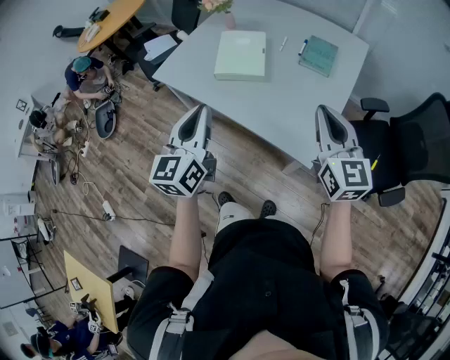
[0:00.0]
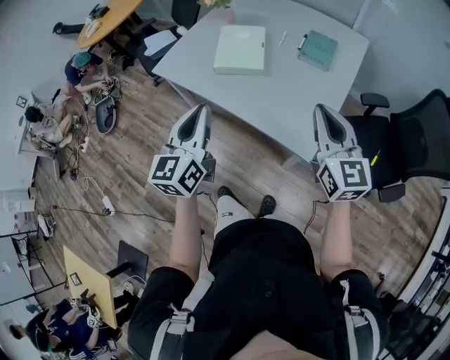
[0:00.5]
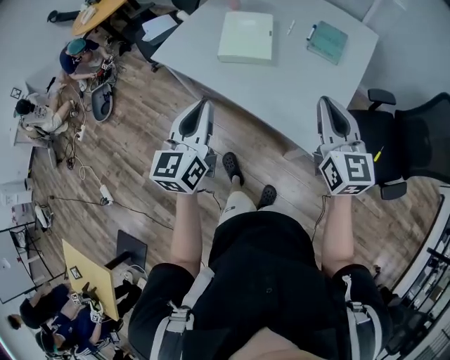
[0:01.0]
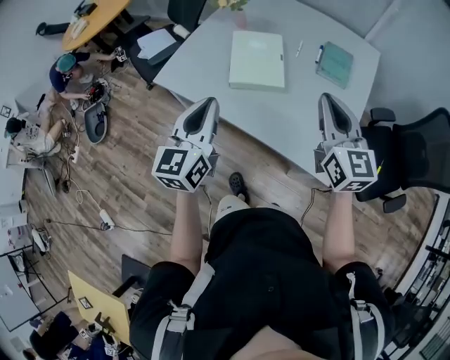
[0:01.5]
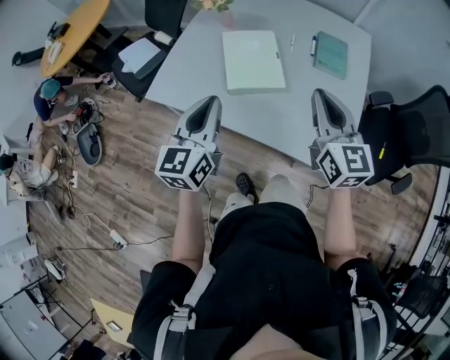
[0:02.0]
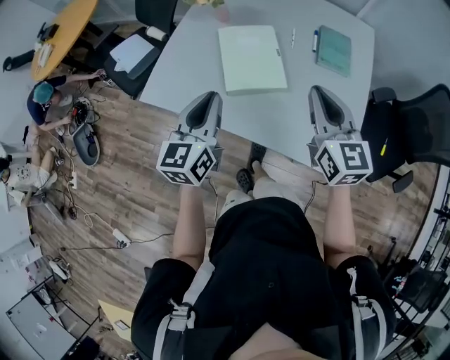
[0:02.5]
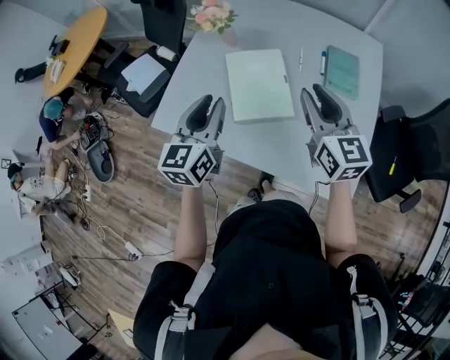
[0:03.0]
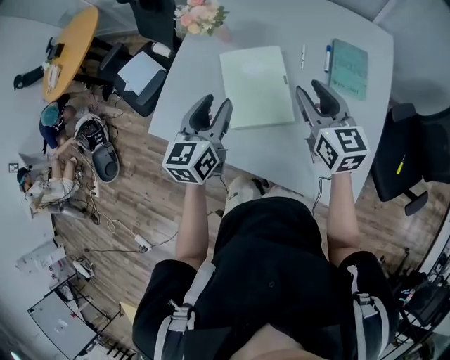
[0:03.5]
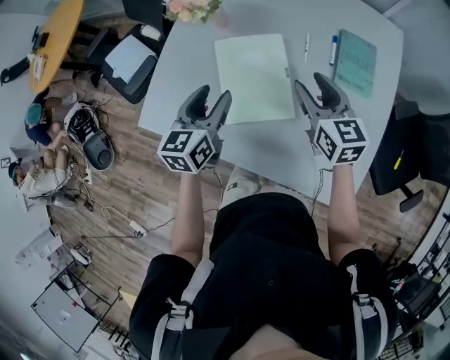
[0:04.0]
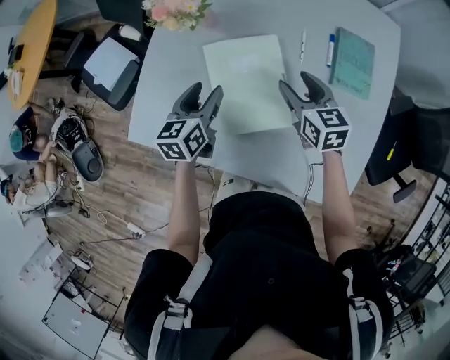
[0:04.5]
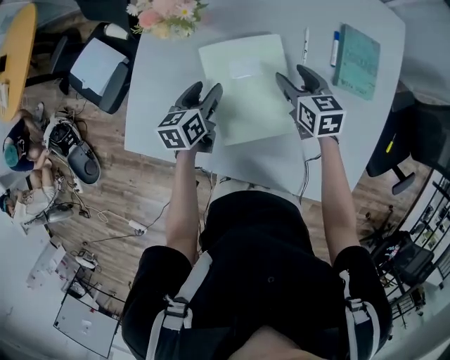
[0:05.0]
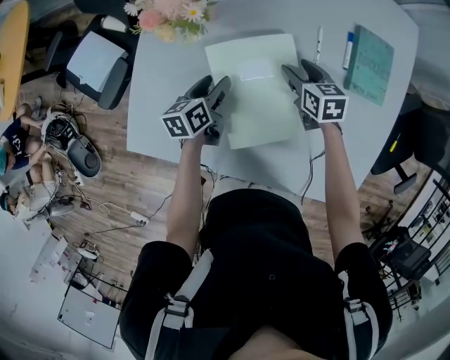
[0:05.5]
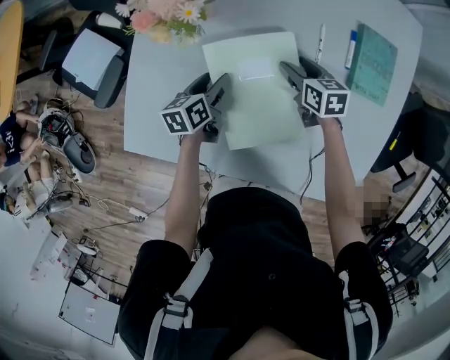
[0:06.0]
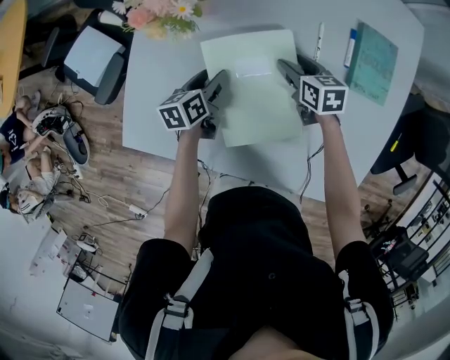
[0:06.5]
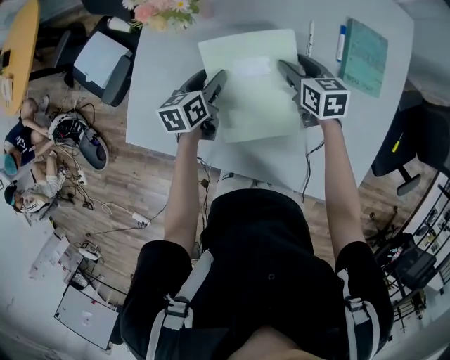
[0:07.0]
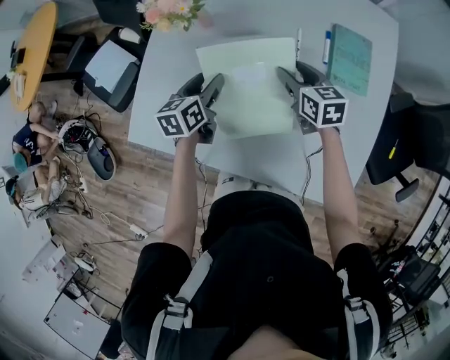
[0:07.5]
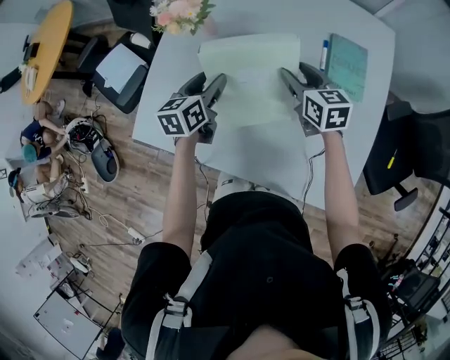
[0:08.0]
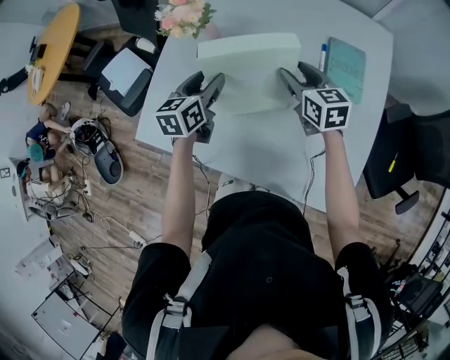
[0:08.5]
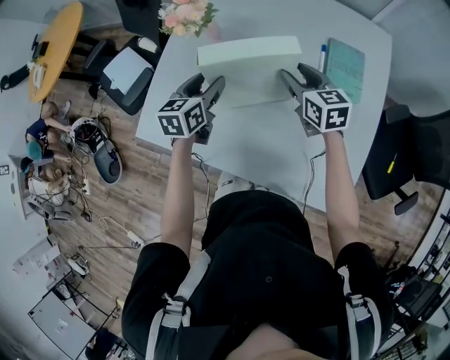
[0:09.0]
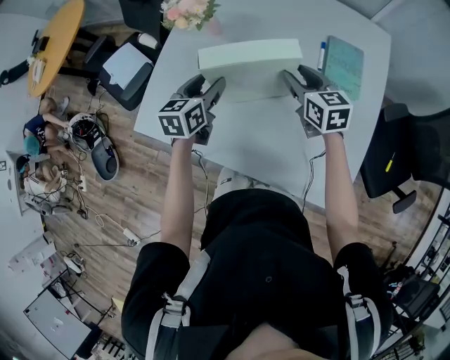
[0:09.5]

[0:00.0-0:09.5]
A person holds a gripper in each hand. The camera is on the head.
0:00.0 to 0:02.0: The right gripper moves to the left and forward, about 25 cm. Meanwhile the left gripper travels forward and to the left by some 25 cm.
0:02.0 to 0:04.0: The grippers both shift forward and downward by some 35 cm. The left gripper opens its fingers. Meanwhile the right gripper opens.
0:04.0 to 0:05.5: The two grippers go about 30 cm downward and forward. The right gripper swivels approximately 30 degrees; the left gripper changes its angle by some 30 degrees.
0:05.5 to 0:07.5: The two grippers go about 15 cm upward and backward.
0:07.5 to 0:09.5: Both grippers travel together upward and backward, approximately 10 cm.

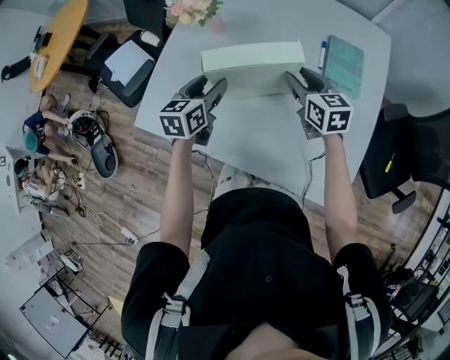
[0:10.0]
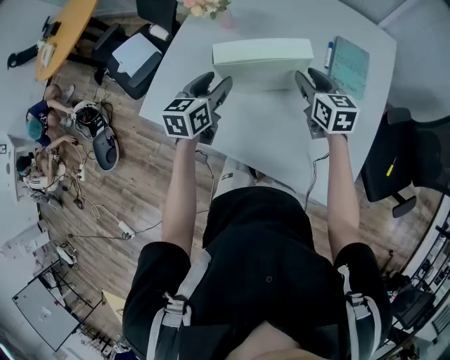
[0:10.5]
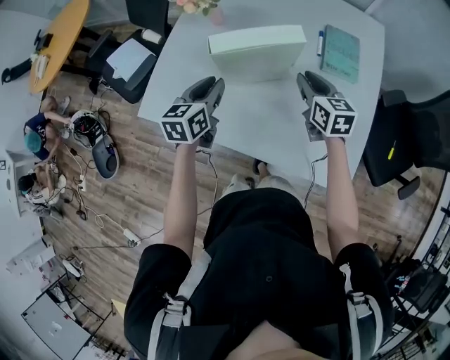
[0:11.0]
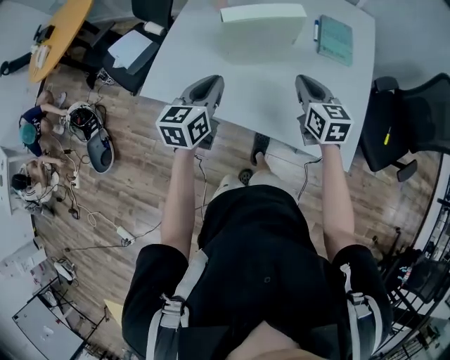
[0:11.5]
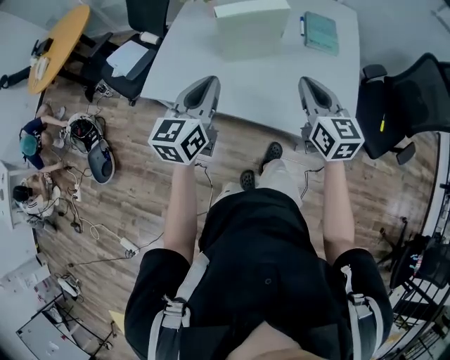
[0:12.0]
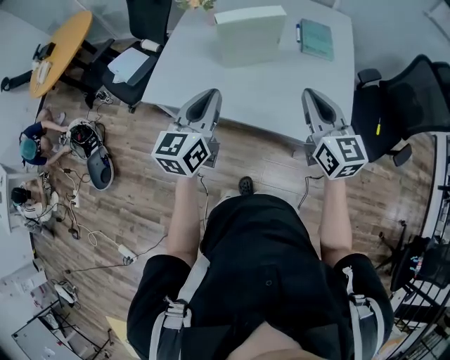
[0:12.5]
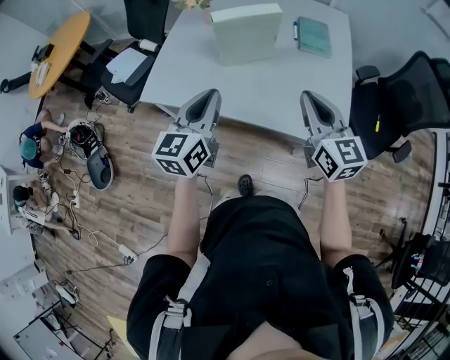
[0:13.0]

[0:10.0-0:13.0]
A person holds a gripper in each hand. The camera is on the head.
0:10.0 to 0:11.5: Both grippers move backward, some 20 cm. The left gripper closes up, while the right gripper closes its fingers.
0:11.5 to 0:13.0: Both grippers move backward and upward, about 20 cm.

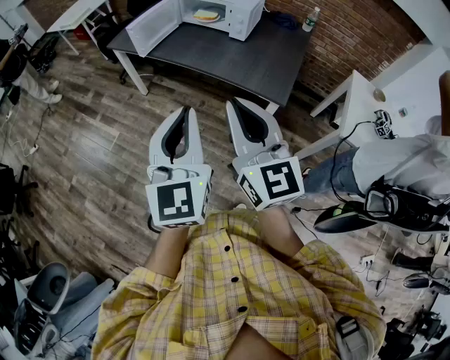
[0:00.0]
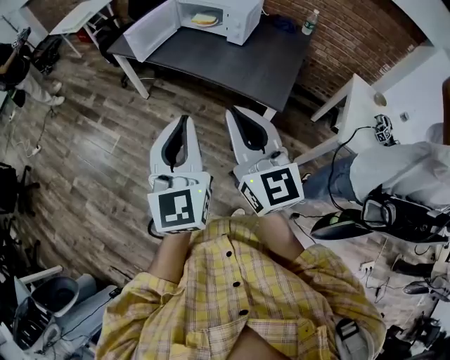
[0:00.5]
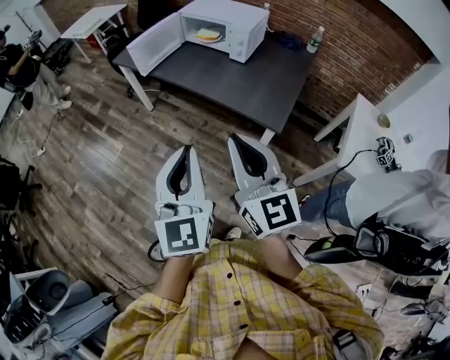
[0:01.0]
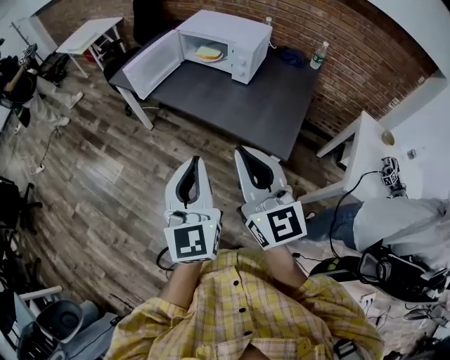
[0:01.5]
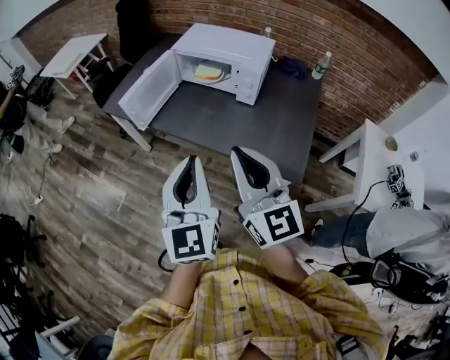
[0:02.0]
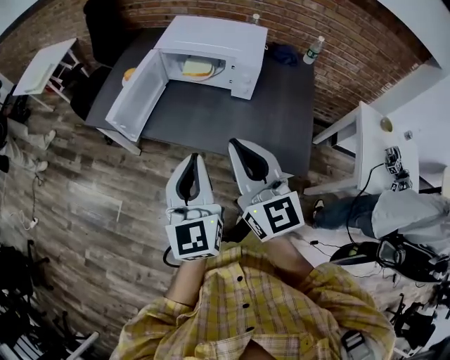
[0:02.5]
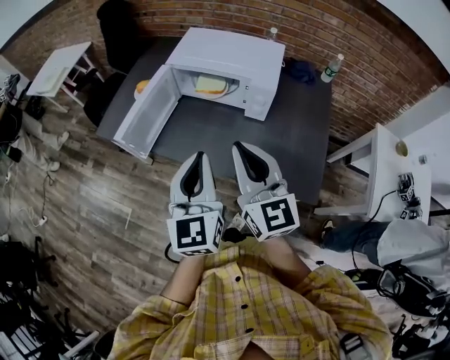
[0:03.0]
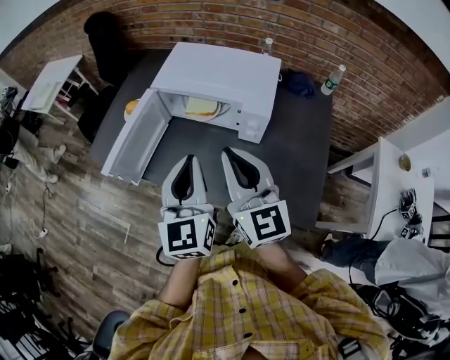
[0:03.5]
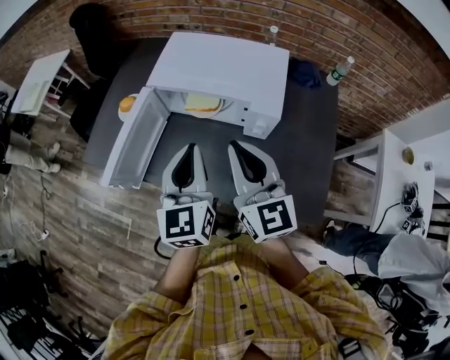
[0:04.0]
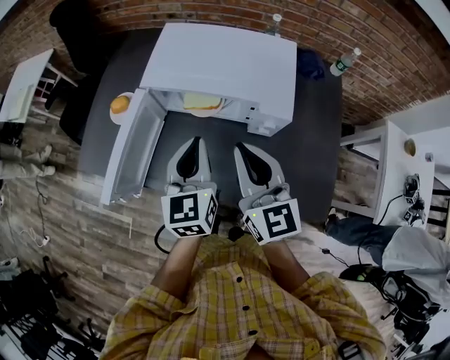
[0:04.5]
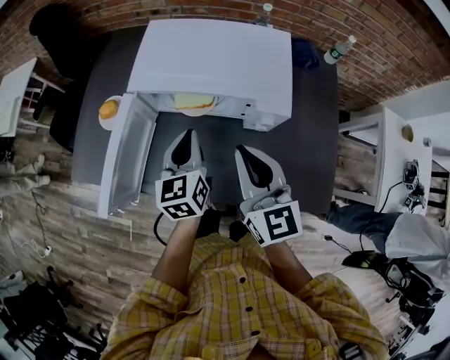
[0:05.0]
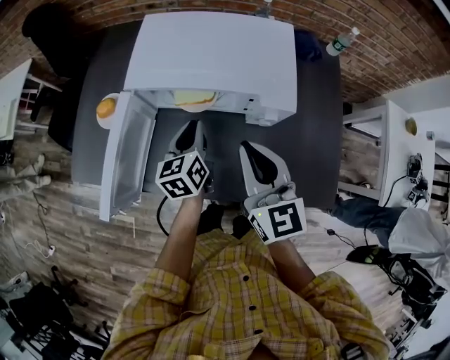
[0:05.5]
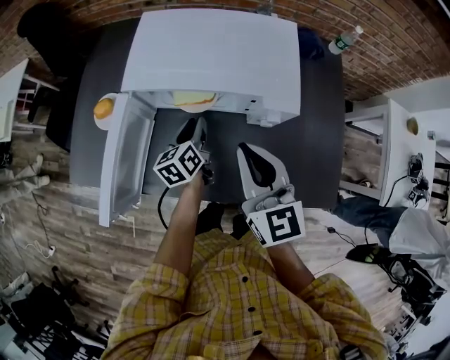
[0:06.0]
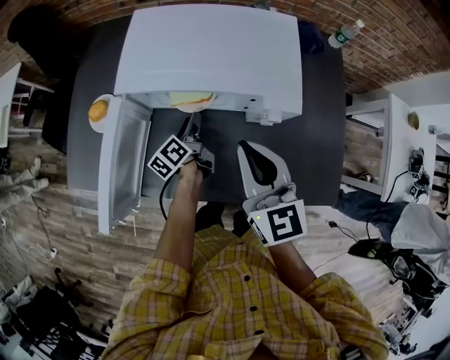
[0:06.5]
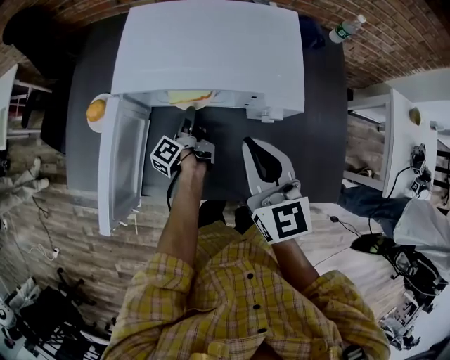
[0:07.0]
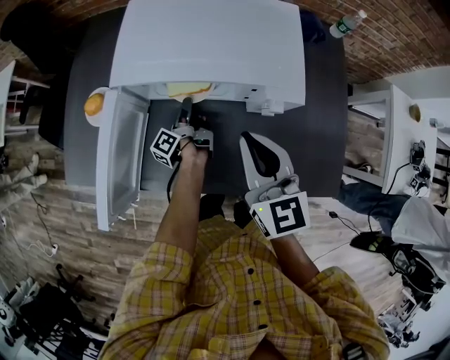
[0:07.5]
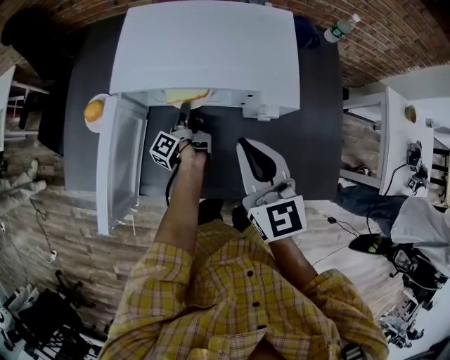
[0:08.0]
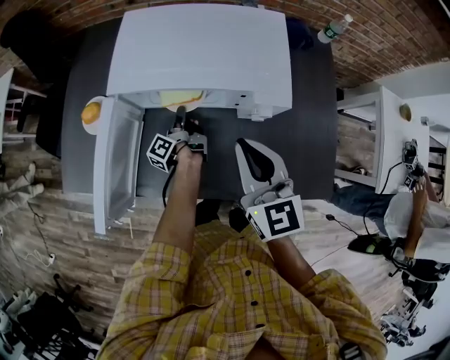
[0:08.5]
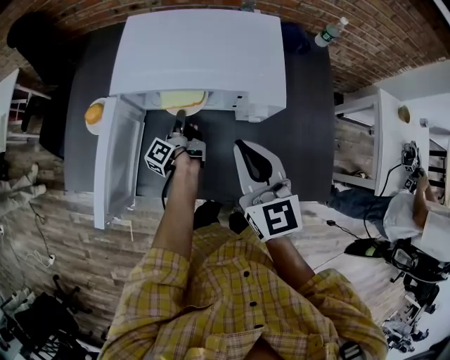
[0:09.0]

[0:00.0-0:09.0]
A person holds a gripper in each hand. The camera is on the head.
0:00.0 to 0:02.0: The grippers both shift forward by approximately 30 cm.
0:02.0 to 0:04.5: Both grippers travel together forward, approximately 40 cm. The left gripper changes its angle by approximately 20 degrees.
0:04.5 to 0:07.0: The left gripper goes about 30 cm downward and forward, rotates around the line of its fingers by approximately 80 degrees, counterclockwise from behind, and opens its fingers. Meanwhile the right gripper heads downward, covering approximately 5 cm.
0:07.0 to 0:09.0: The left gripper closes up.

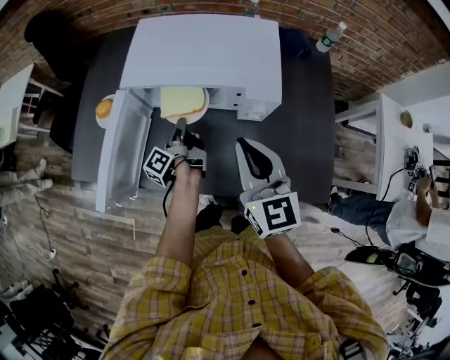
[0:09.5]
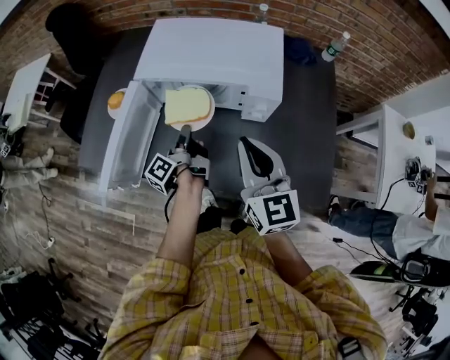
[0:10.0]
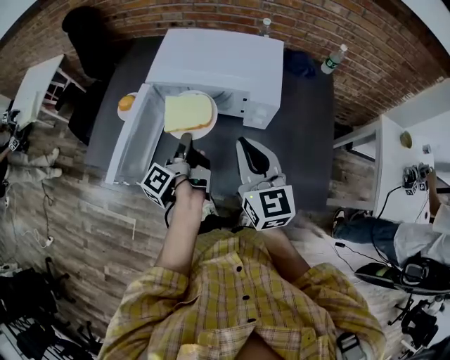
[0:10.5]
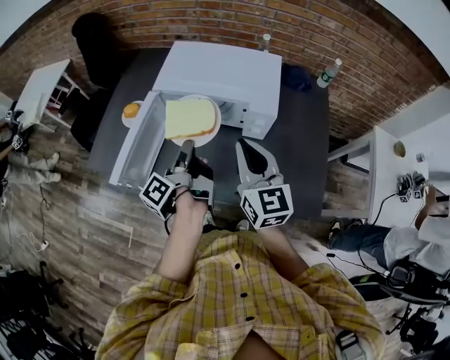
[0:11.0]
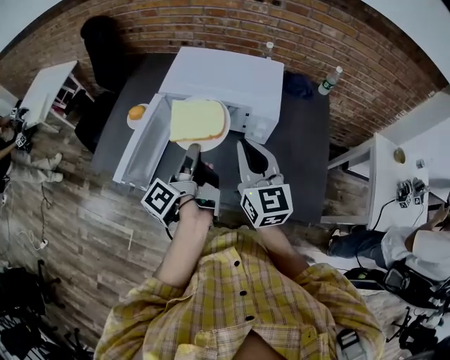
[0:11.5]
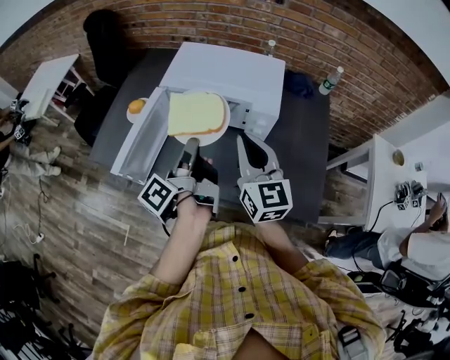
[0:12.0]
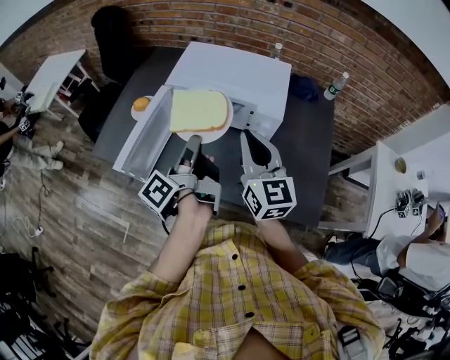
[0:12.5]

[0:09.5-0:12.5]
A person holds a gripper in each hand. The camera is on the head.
0:09.5 to 0:11.0: The right gripper changes place by approximately 5 cm. The left gripper heads upward and backward, covering roughly 25 cm.
0:11.0 to 0:12.5: The left gripper moves upward, roughly 5 cm.

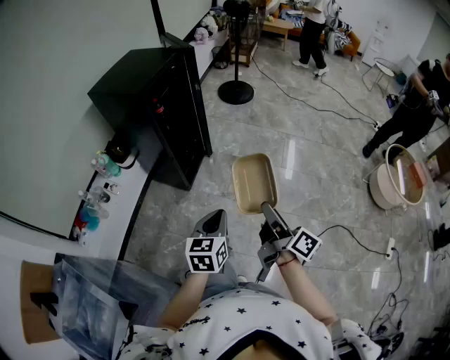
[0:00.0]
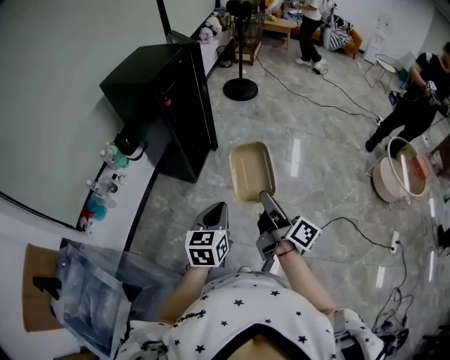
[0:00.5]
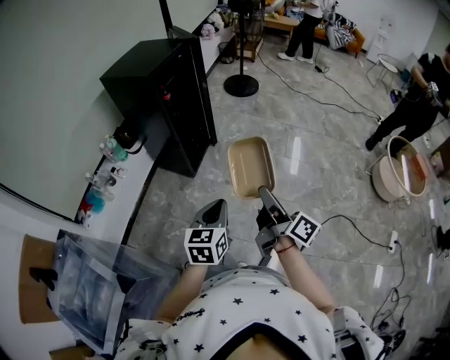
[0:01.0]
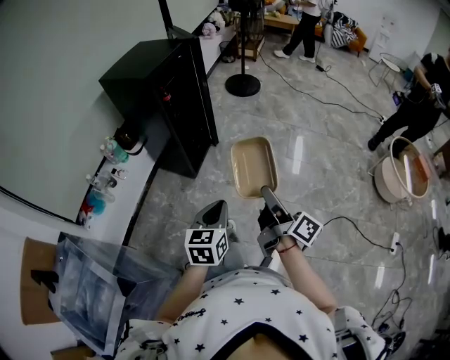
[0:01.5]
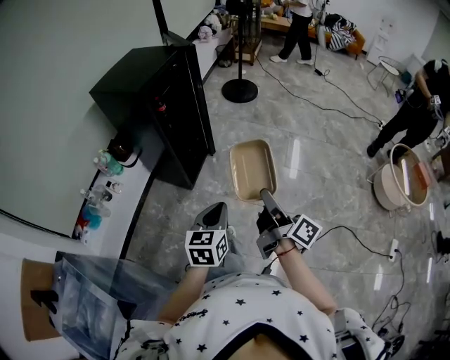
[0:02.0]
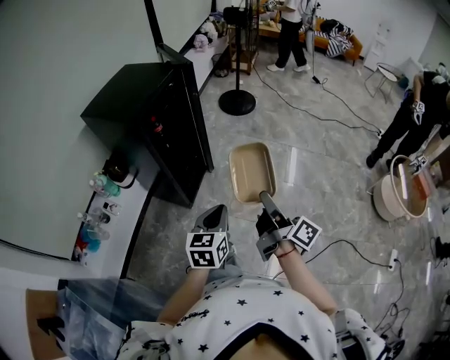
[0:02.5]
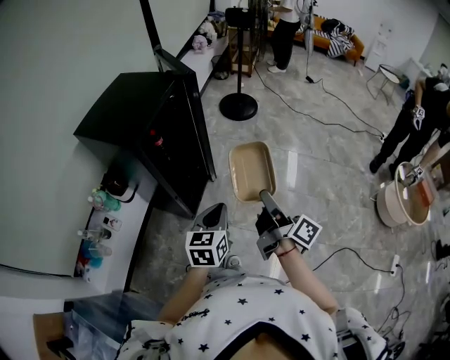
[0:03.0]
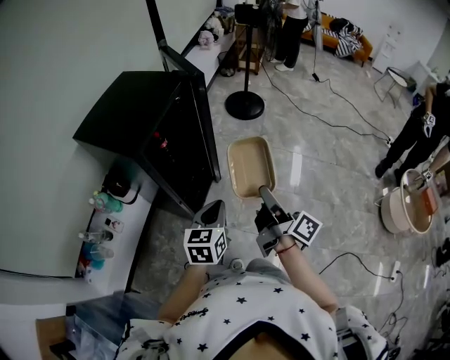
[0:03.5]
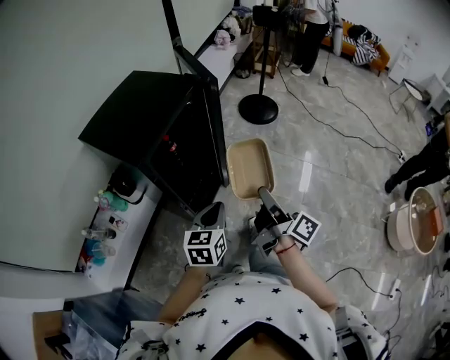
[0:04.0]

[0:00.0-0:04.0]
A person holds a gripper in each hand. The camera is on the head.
0:00.0 to 0:02.0: The left gripper reaches roughly 10 cm backward, then returns.
0:02.0 to 0:04.0: The grippers both shift forward by roughly 35 cm.
